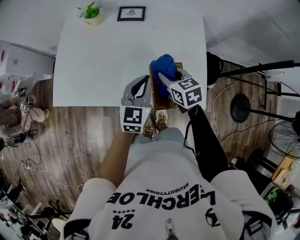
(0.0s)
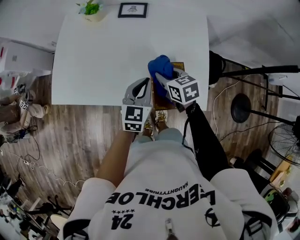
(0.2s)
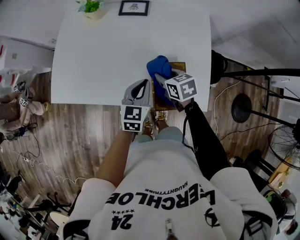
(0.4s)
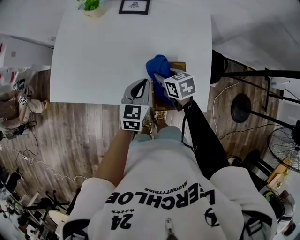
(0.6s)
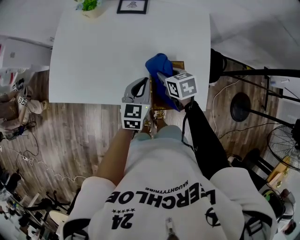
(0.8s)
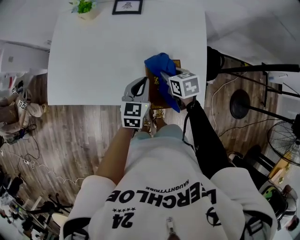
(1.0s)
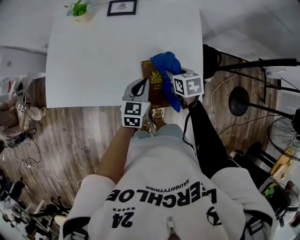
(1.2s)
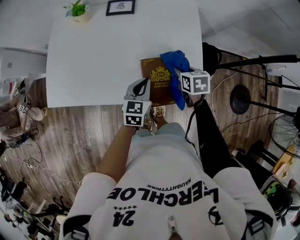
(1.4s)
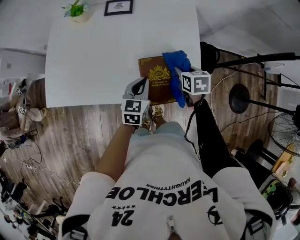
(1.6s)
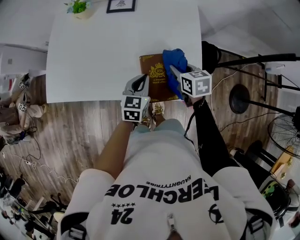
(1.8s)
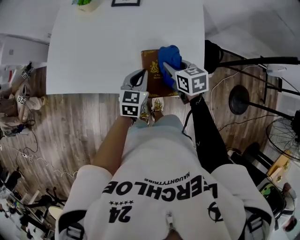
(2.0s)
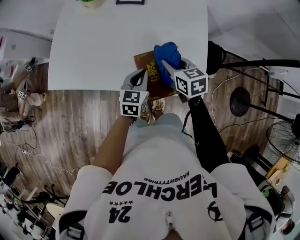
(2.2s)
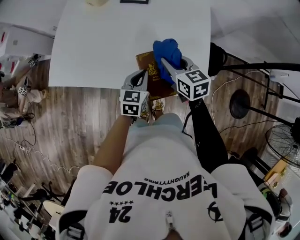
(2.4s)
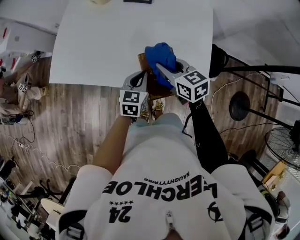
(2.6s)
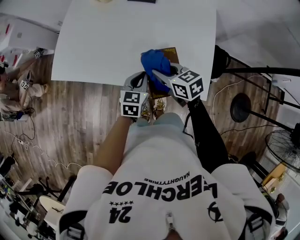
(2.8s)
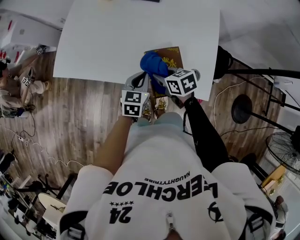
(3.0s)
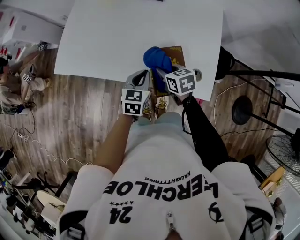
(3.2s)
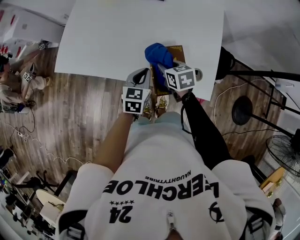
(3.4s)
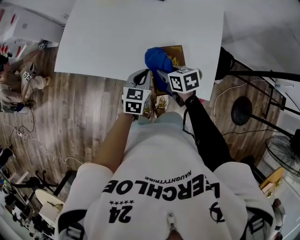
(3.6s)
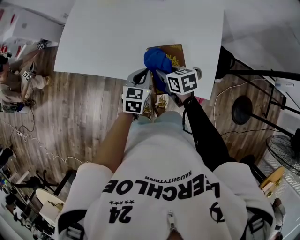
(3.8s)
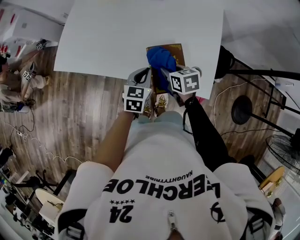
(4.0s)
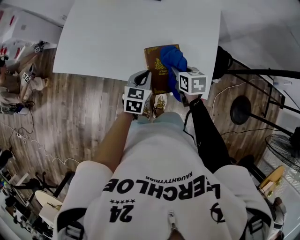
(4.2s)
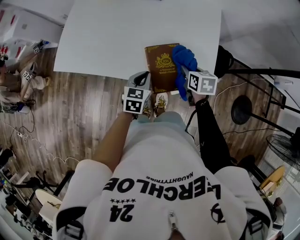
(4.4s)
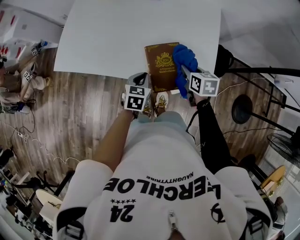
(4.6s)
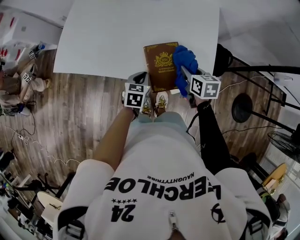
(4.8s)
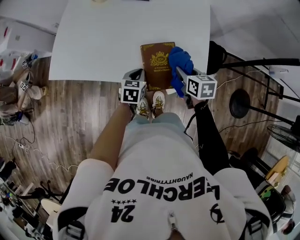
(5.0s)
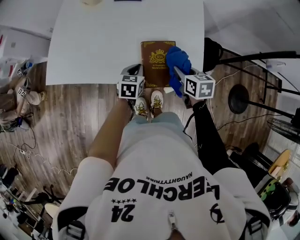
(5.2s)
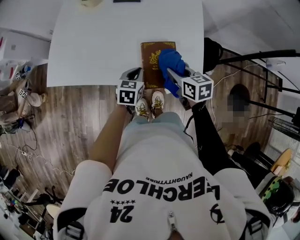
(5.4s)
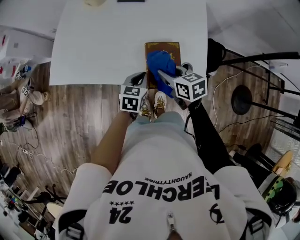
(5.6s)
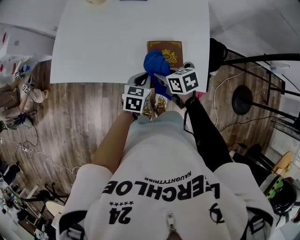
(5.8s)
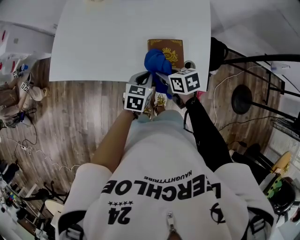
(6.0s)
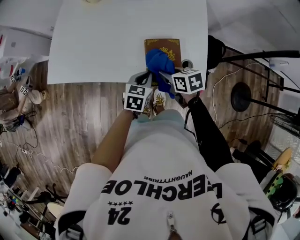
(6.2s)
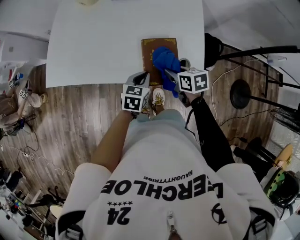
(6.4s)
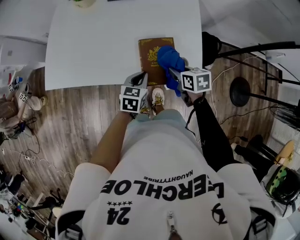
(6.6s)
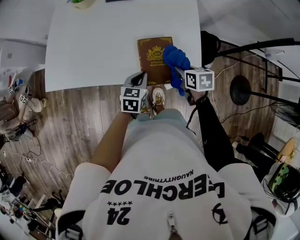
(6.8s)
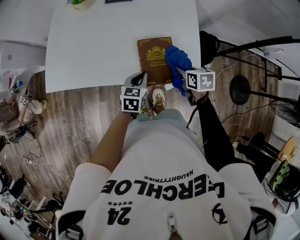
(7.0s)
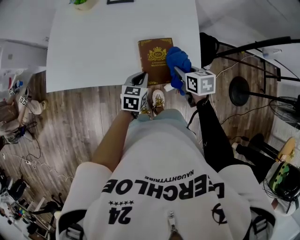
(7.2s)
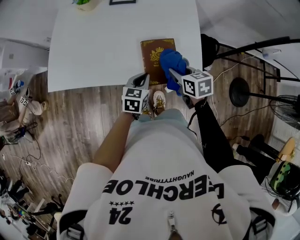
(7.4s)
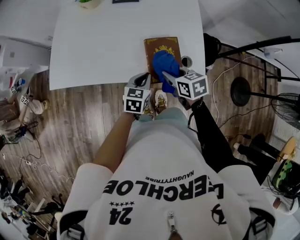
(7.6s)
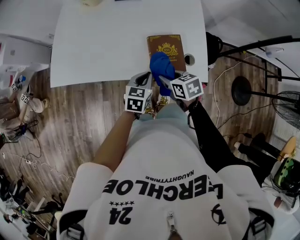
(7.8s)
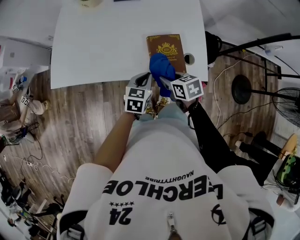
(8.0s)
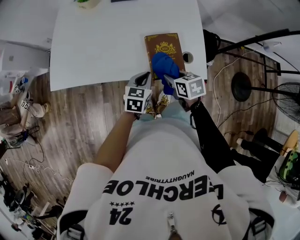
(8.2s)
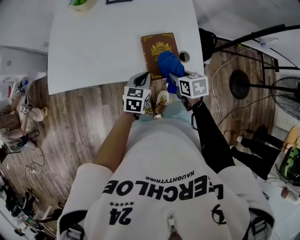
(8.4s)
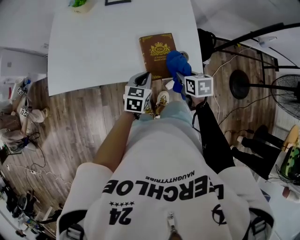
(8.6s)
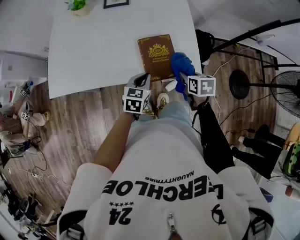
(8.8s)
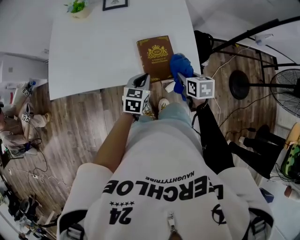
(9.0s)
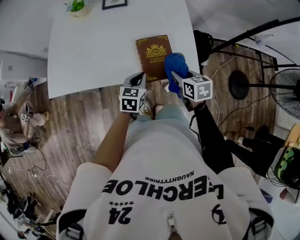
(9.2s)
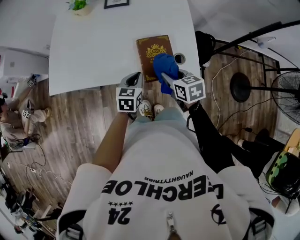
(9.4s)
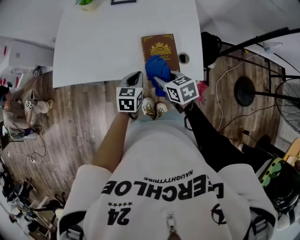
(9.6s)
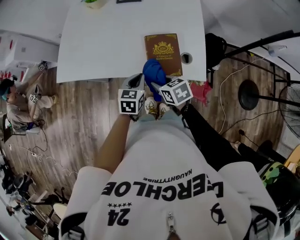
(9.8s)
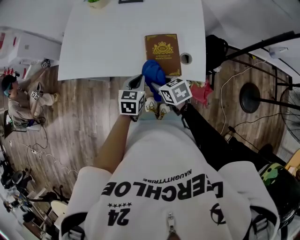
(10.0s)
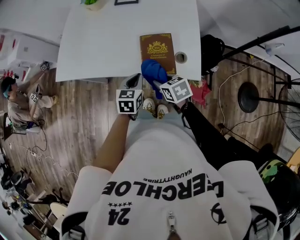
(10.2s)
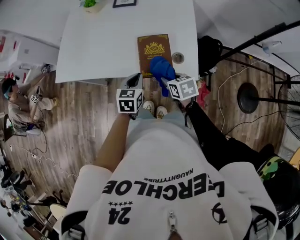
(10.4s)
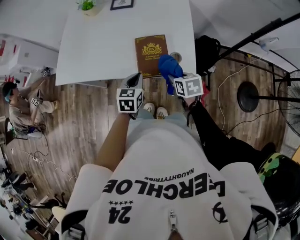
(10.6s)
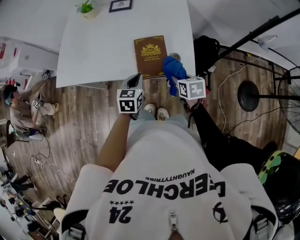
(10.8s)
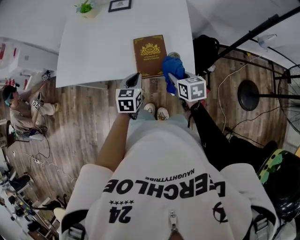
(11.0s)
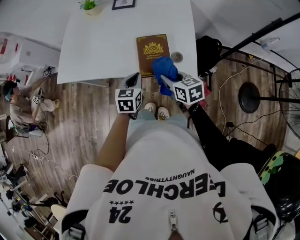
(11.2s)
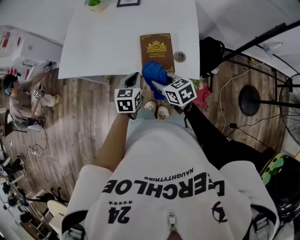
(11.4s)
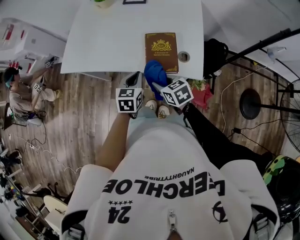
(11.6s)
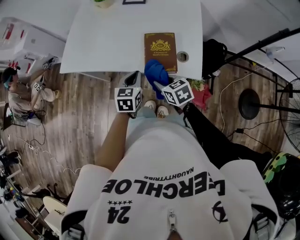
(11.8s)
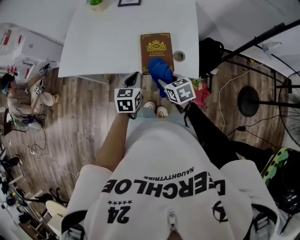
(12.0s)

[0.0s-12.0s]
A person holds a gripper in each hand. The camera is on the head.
0.0s to 1.6s: The right gripper is displaced to the right and downward by approximately 15 cm, and rotates approximately 20 degrees. Meanwhile the left gripper is displaced downward by about 10 cm.
1.6s to 3.0s: The right gripper travels upward and back again, approximately 10 cm each way, and turns by about 30 degrees. The left gripper changes place by about 10 cm.
3.0s to 4.4s: The right gripper travels to the right by about 15 cm, and swivels some 30 degrees.
4.4s to 6.0s: The right gripper heads to the left, covering about 10 cm, and rotates some 20 degrees.
6.0s to 7.6s: The right gripper moves approximately 15 cm to the right and comes back.
7.6s to 9.0s: The right gripper goes approximately 10 cm to the right, and rotates some 20 degrees.
9.0s to 10.4s: The right gripper changes its angle by roughly 20 degrees.
10.4s to 12.0s: The right gripper swings left and right, about 15 cm each way, with 2 reversals.

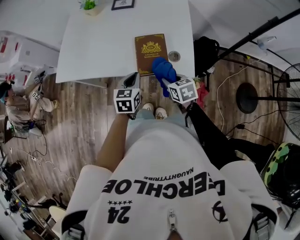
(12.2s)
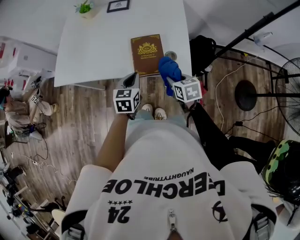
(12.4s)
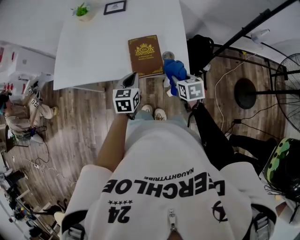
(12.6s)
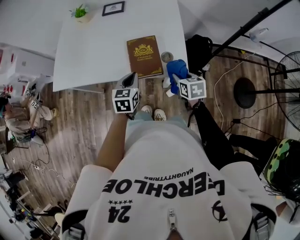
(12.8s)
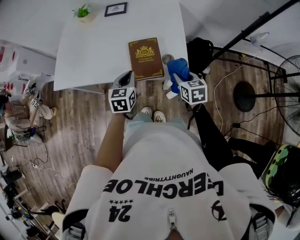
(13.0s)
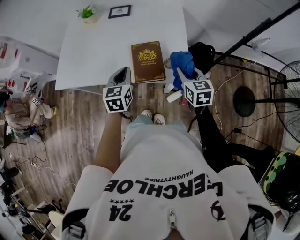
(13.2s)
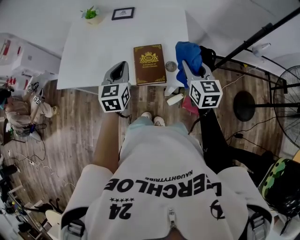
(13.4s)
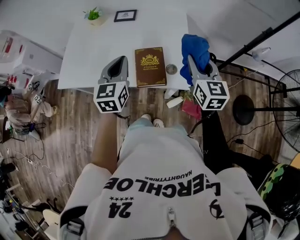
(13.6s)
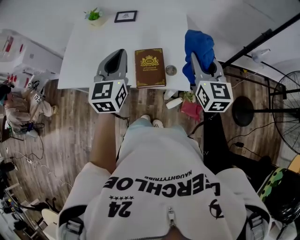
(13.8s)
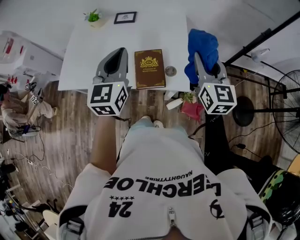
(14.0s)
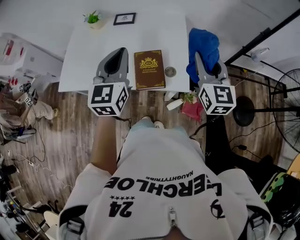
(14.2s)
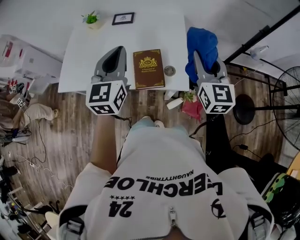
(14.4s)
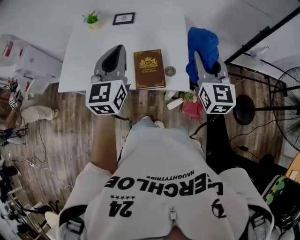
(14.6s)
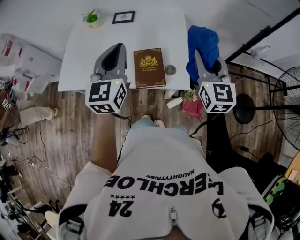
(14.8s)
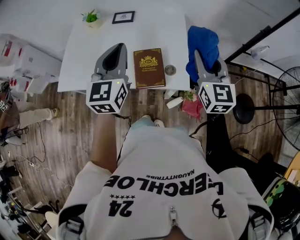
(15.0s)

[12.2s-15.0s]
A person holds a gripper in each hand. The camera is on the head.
12.2s to 13.6s: The left gripper moves upward, roughly 20 cm, and rotates approximately 20 degrees; the right gripper moves upward and to the right, approximately 25 cm, and points its fingers approximately 30 degrees further upward.
13.6s to 15.0s: The left gripper is displaced upward by some 10 cm, while the right gripper is displaced upward by about 5 cm.

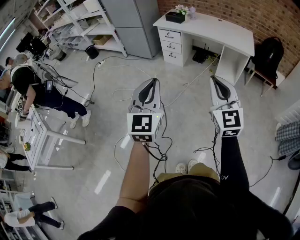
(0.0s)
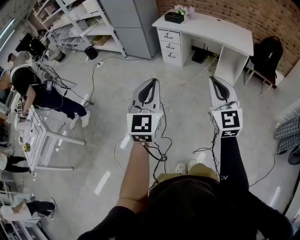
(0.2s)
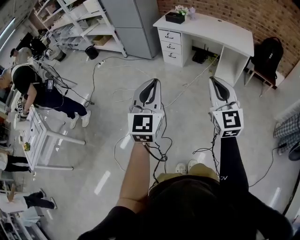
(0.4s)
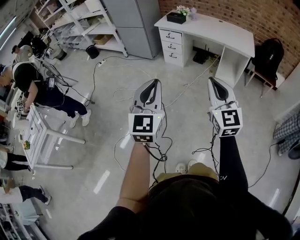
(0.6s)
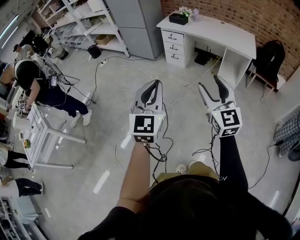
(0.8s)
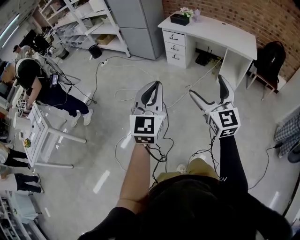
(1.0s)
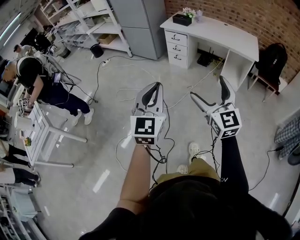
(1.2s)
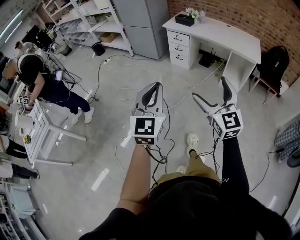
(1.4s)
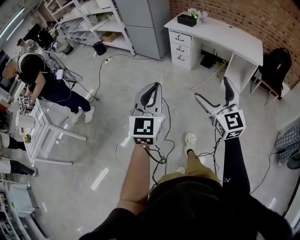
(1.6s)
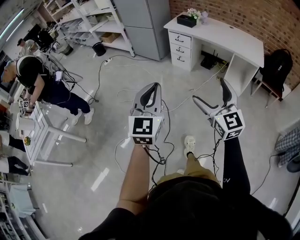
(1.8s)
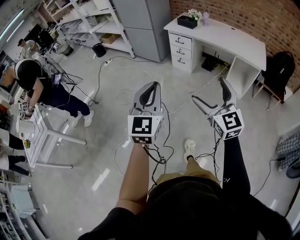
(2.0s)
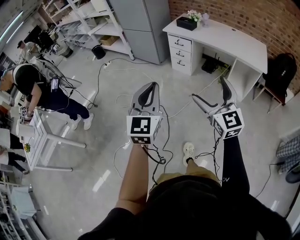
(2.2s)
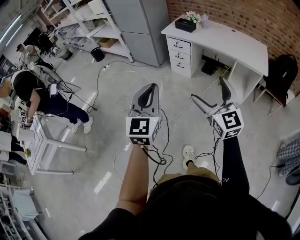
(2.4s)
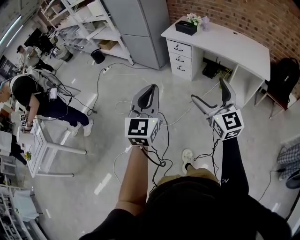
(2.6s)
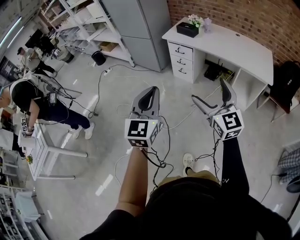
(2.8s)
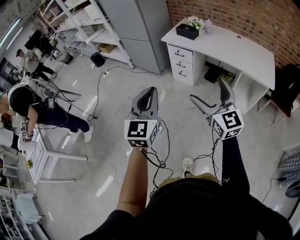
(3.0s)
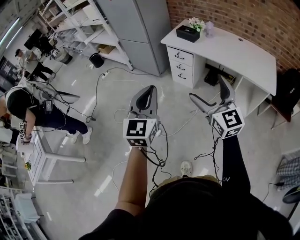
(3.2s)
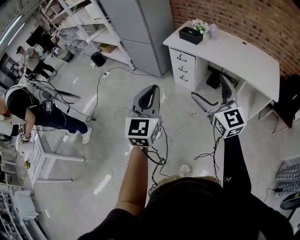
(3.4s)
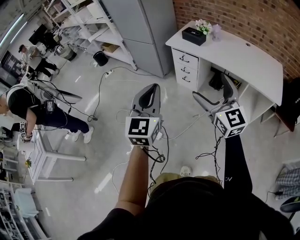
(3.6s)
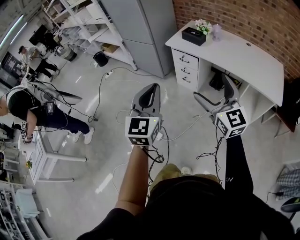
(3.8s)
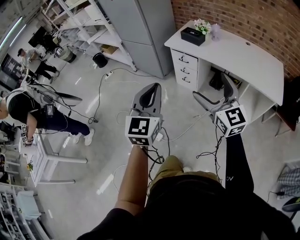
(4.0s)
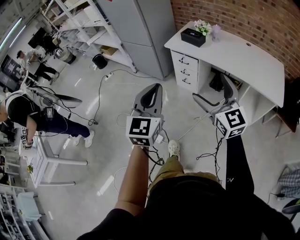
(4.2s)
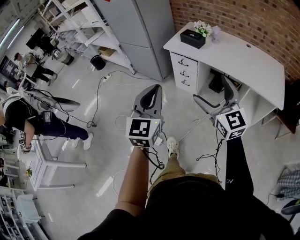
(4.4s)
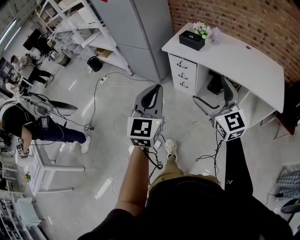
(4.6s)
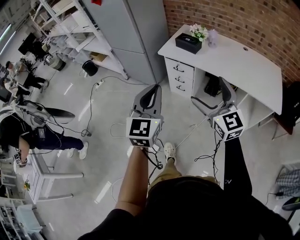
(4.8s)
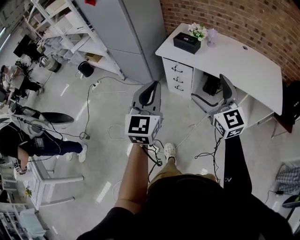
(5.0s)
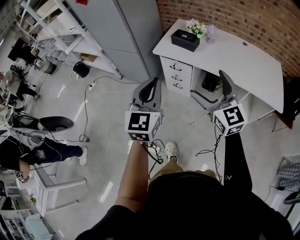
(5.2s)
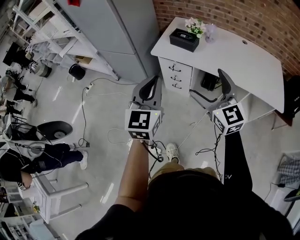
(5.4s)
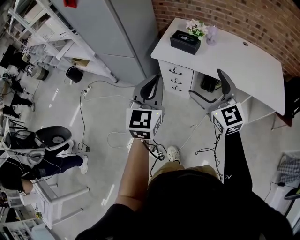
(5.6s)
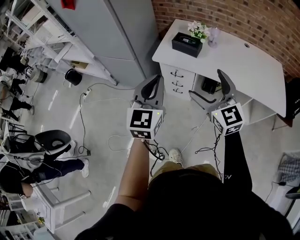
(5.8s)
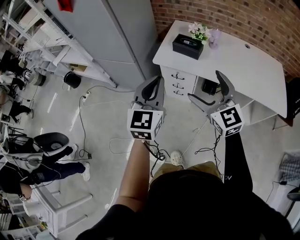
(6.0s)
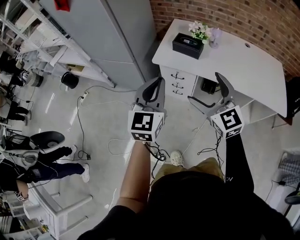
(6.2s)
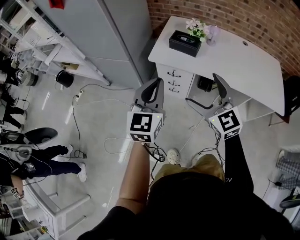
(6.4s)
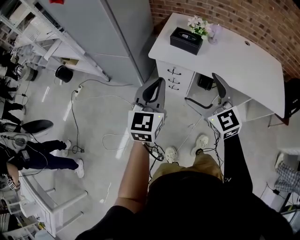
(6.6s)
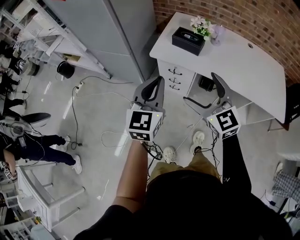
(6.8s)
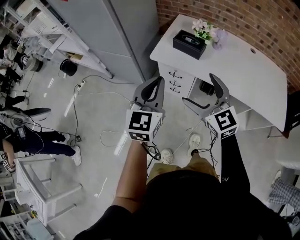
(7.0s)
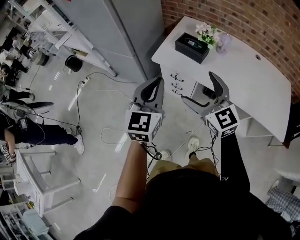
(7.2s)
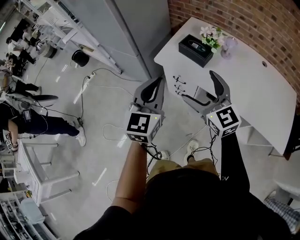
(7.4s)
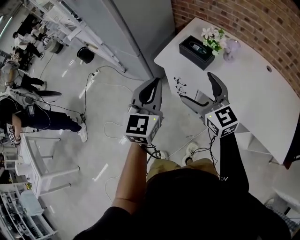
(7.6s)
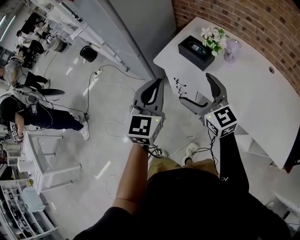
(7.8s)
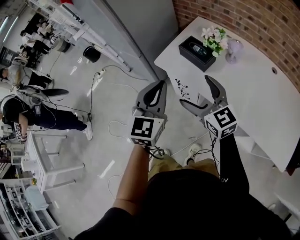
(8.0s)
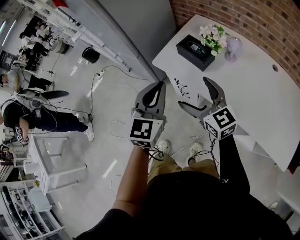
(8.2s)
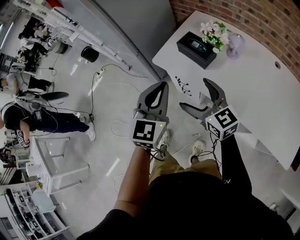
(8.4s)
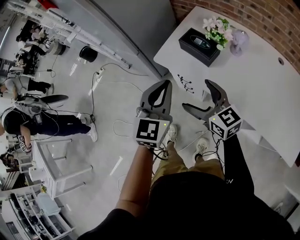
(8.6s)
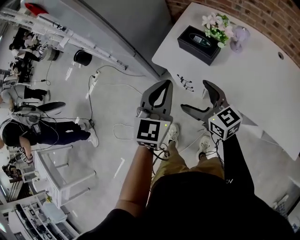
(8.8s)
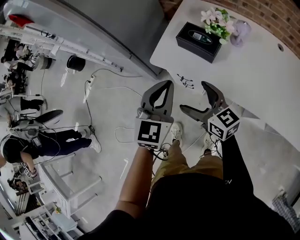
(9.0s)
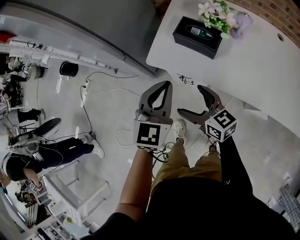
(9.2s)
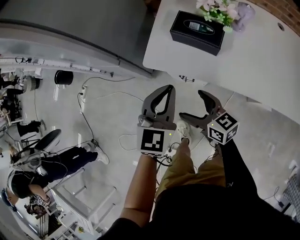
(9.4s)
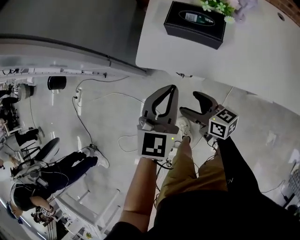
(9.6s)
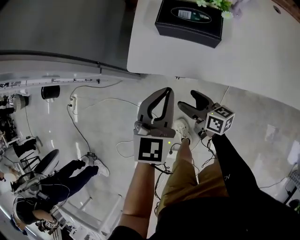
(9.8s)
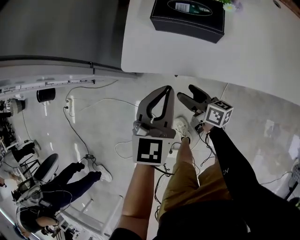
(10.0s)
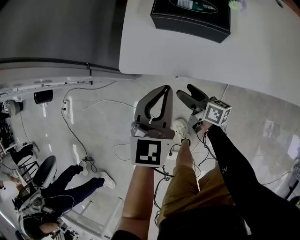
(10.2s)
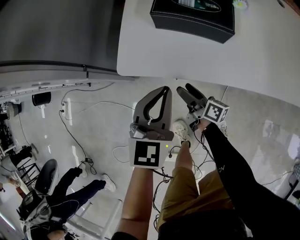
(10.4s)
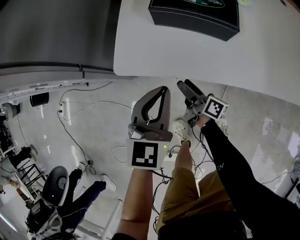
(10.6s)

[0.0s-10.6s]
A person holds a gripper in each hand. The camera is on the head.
0.0s to 1.6s: The right gripper travels to the left by roughly 5 cm, and opens up.
1.6s to 3.0s: Both grippers travel together forward, about 30 cm.
3.0s to 4.6s: The two grippers go roughly 20 cm forward.
4.6s to 6.0s: The grippers both shift forward by about 30 cm.
6.0s to 7.6s: The right gripper shifts roughly 15 cm forward and to the right, and changes its angle by approximately 20 degrees, while the left gripper is displaced to the right and forward by some 15 cm.
7.6s to 9.0s: The right gripper goes some 15 cm downward and forward, and swivels about 20 degrees, while the left gripper is displaced forward and downward by some 15 cm.
9.0s to 10.6s: The two grippers go roughly 30 cm downward. The right gripper twists approximately 60 degrees clockwise, seen from behind.
